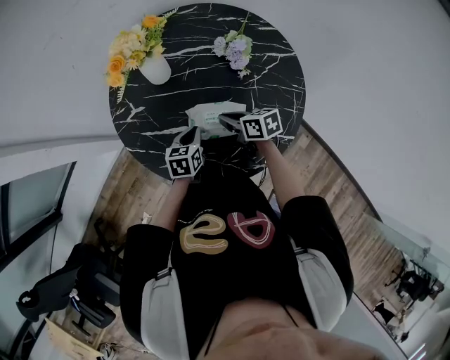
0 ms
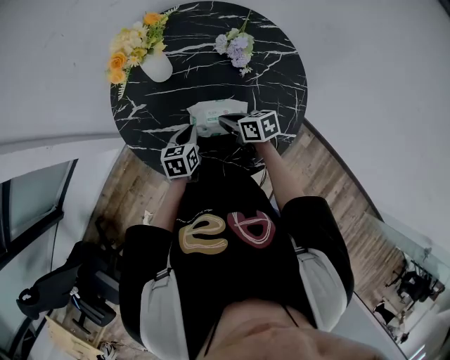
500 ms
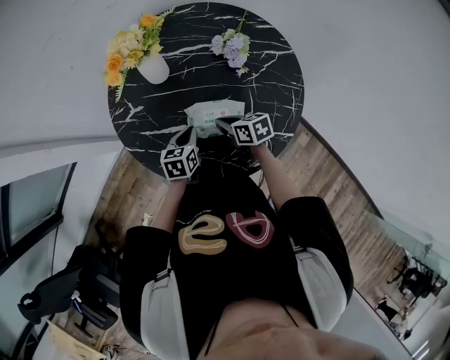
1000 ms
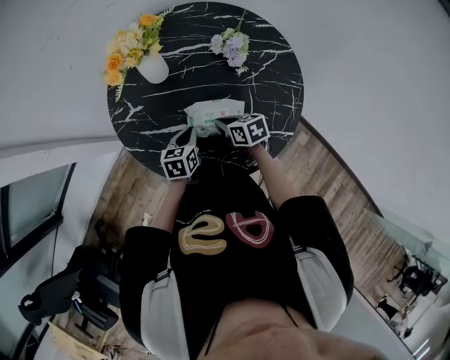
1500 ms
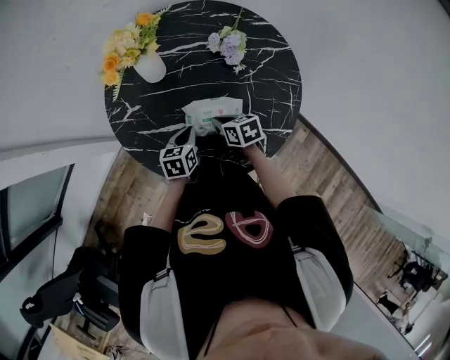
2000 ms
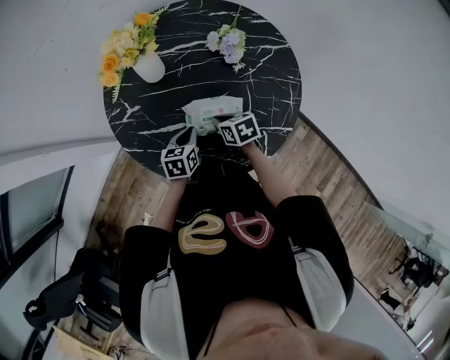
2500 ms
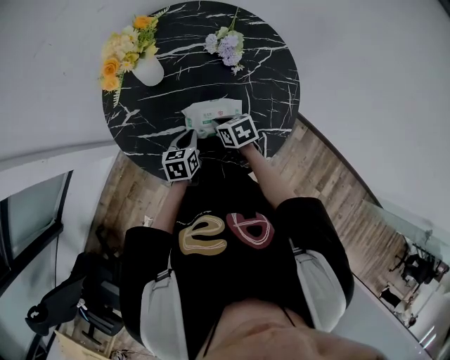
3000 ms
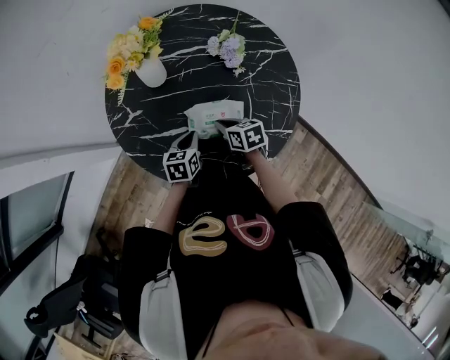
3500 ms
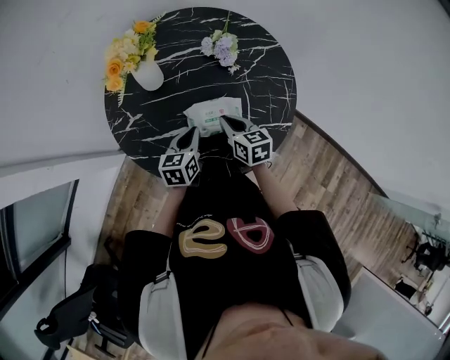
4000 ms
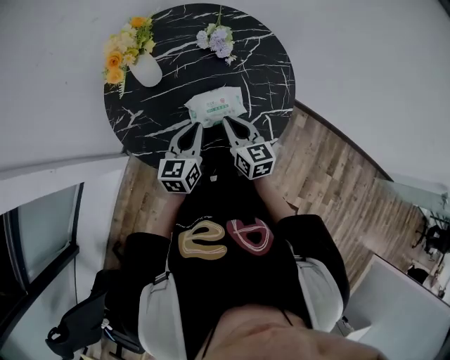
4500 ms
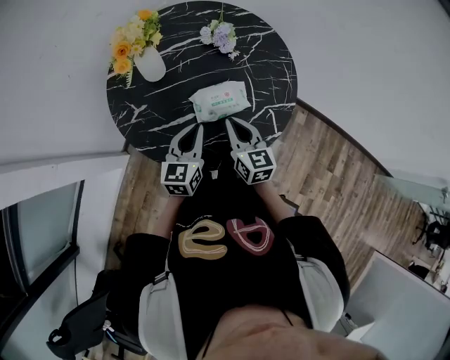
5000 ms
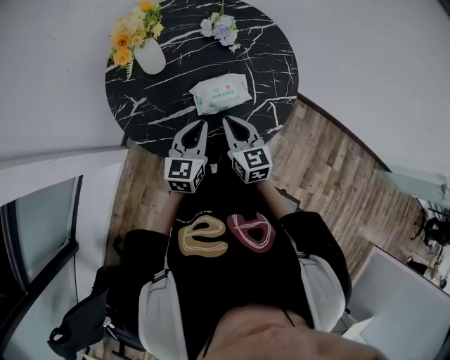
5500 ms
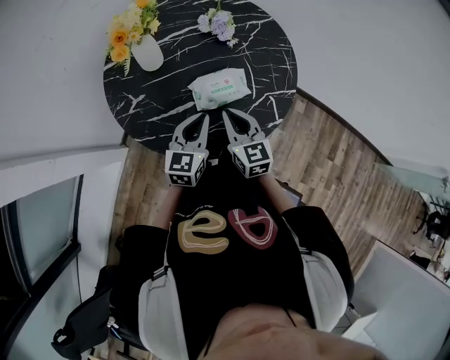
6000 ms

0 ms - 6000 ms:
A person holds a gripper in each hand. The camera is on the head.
0 ms - 2000 ms: The grippers move only a little.
2000 ms - 4000 ms: Both grippers travel together upward, approximately 5 cm. The right gripper changes its angle by about 20 degrees.
4000 ms - 6000 ms: The right gripper moves backward, approximately 10 cm, and rotates approximately 20 degrees. The left gripper goes some 10 cm backward and upward, and changes its angle by approximately 20 degrees.

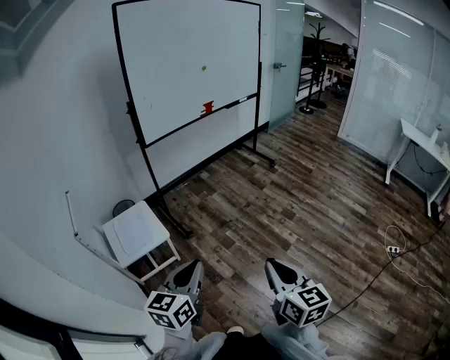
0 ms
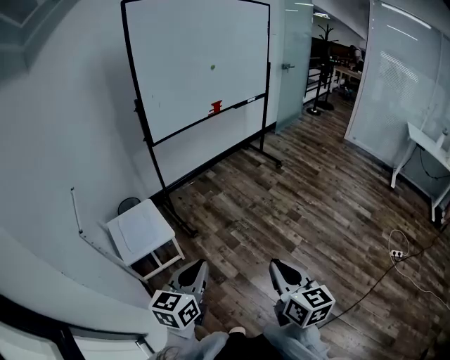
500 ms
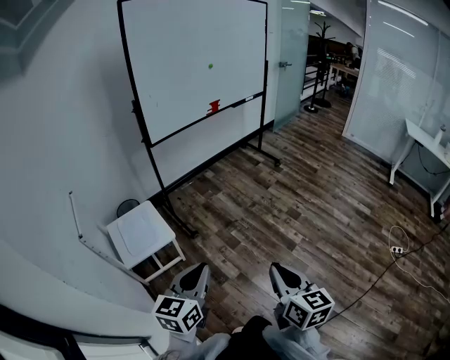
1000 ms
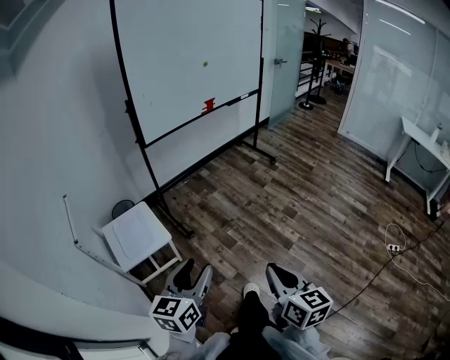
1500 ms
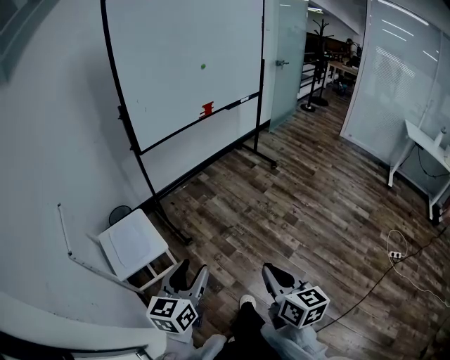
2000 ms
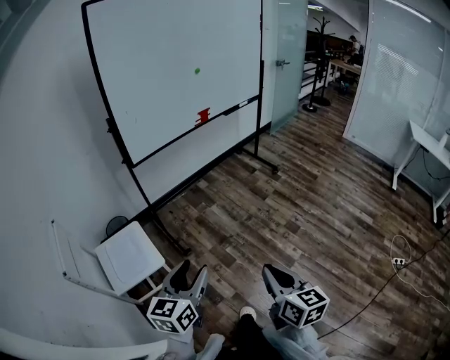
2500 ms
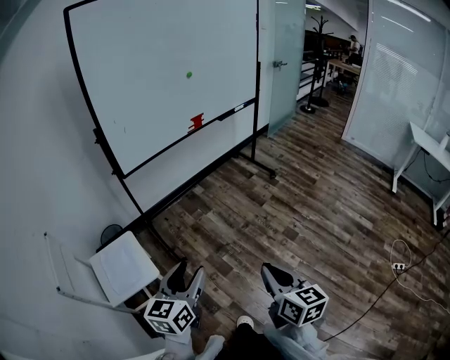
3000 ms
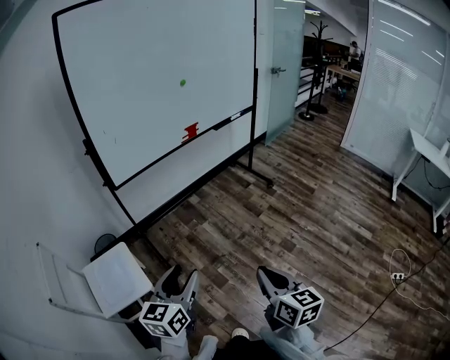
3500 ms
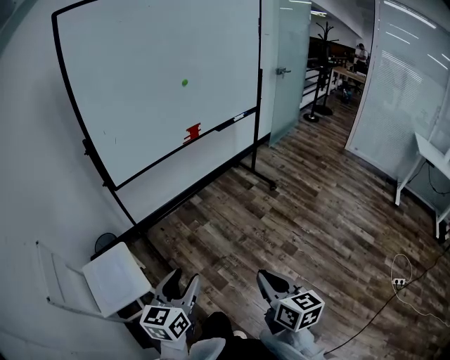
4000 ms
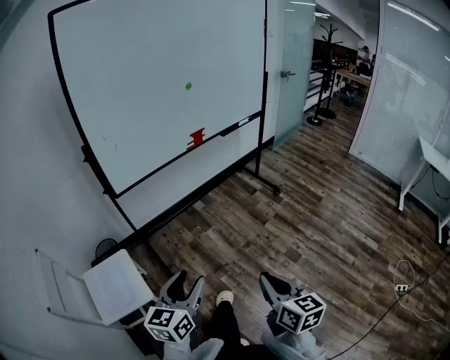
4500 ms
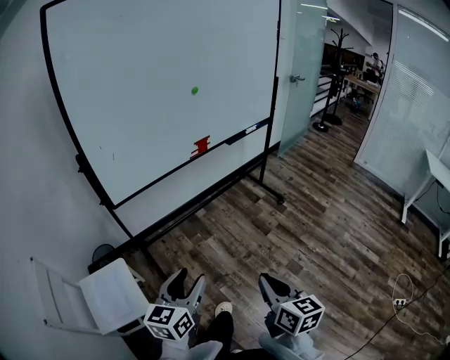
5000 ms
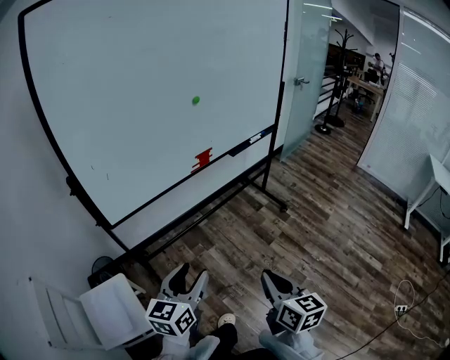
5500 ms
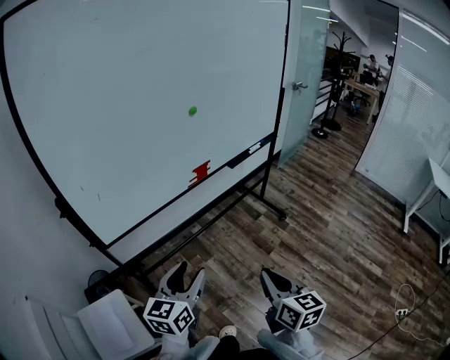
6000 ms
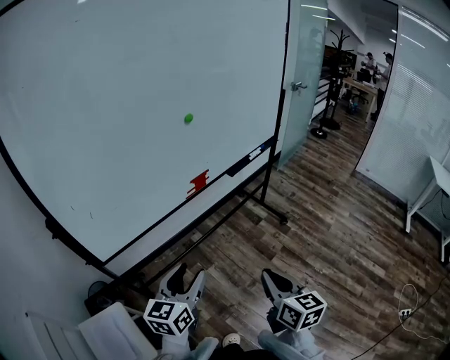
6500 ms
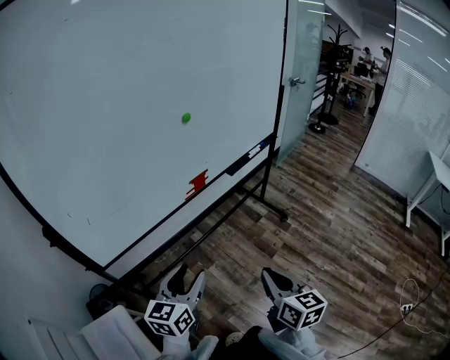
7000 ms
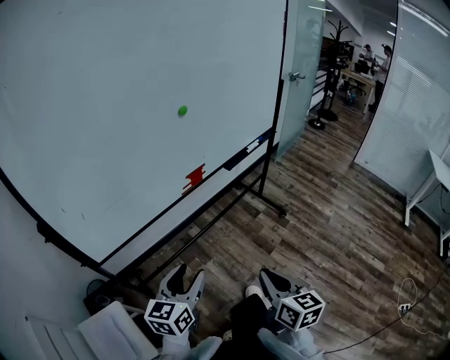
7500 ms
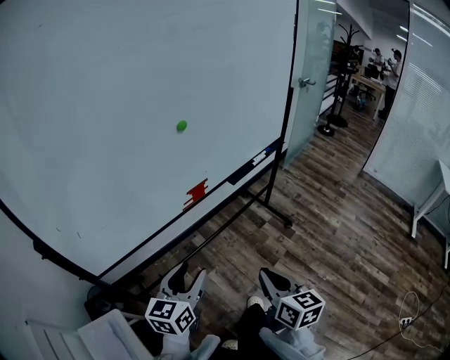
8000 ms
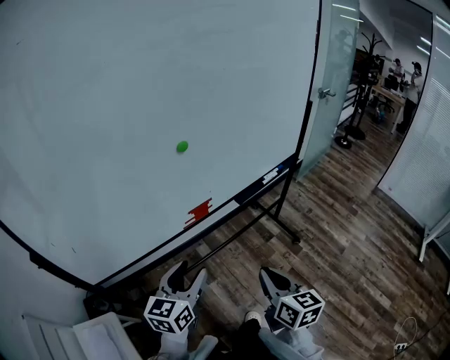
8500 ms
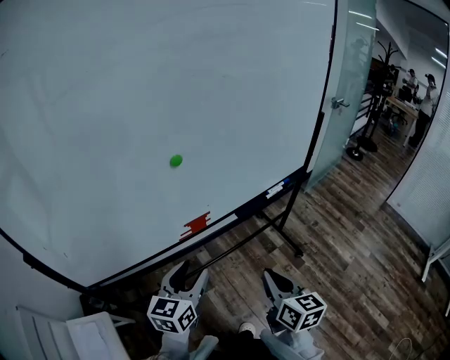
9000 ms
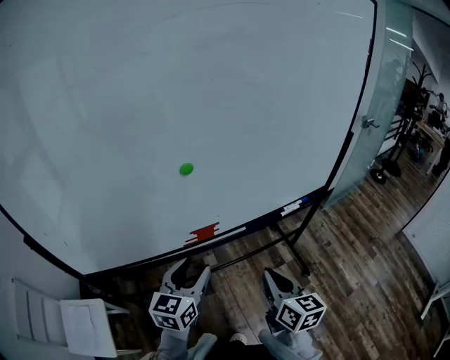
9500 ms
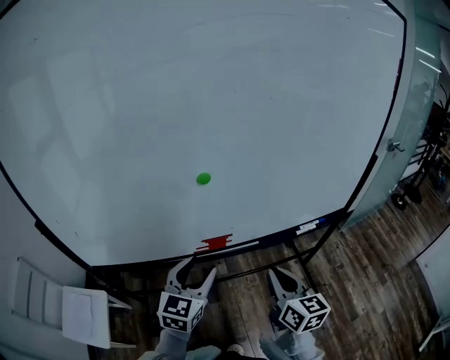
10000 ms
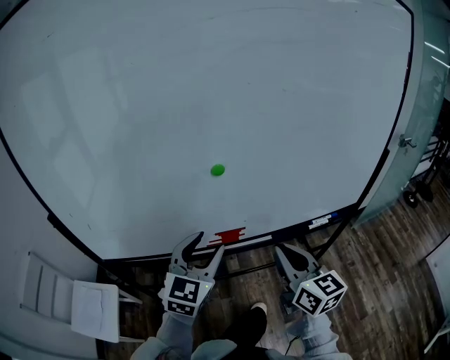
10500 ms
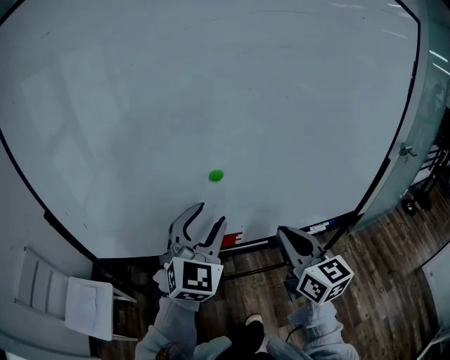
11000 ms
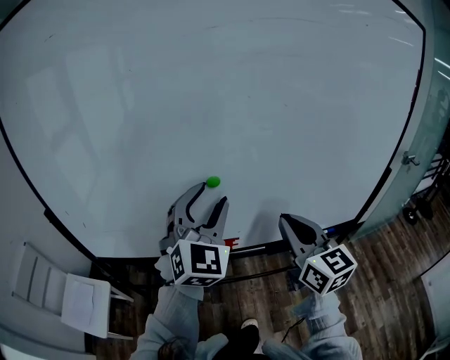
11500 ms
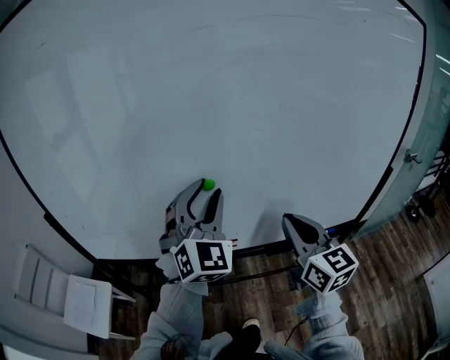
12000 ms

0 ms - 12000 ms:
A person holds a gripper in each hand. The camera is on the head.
0 ms - 2000 ms: Both grippers travel together forward, some 10 cm. The left gripper opens.
2000 ms - 4000 ms: The grippers both shift forward by about 25 cm.
4000 ms - 6000 ms: The grippers both shift forward by roughly 35 cm.
6000 ms - 8000 ms: Both grippers move forward, some 15 cm.
8000 ms - 10000 ms: The left gripper changes place by approximately 20 cm, and rotates roughly 30 degrees; the right gripper changes place by approximately 30 cm, and rotates some 30 degrees.
10000 ms - 12000 ms: Both grippers move upward and forward, about 20 cm. The left gripper swivels some 50 degrees. Meanwhile the right gripper changes its angle by roughly 20 degrees.

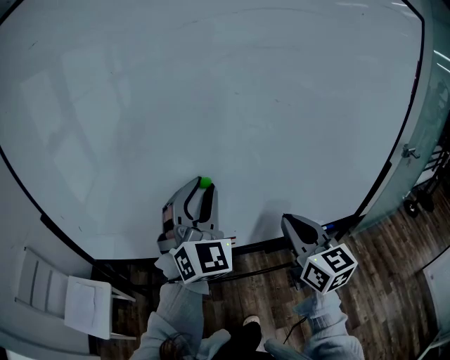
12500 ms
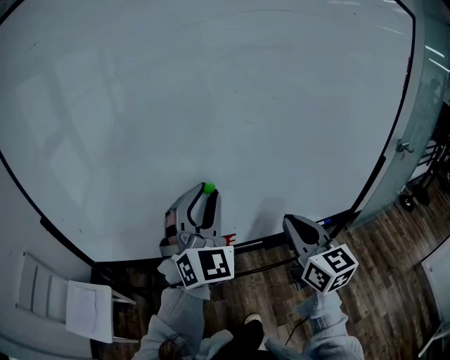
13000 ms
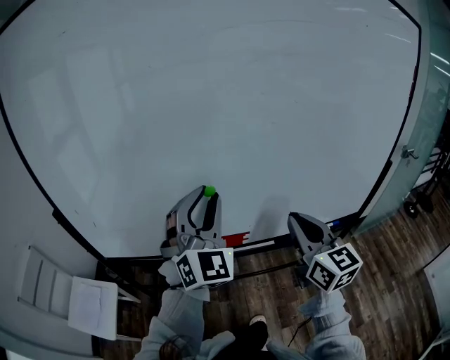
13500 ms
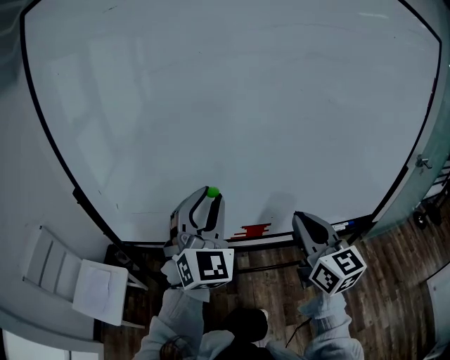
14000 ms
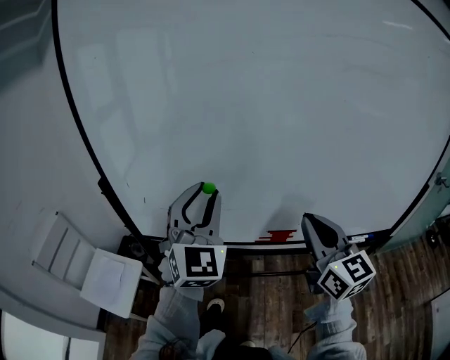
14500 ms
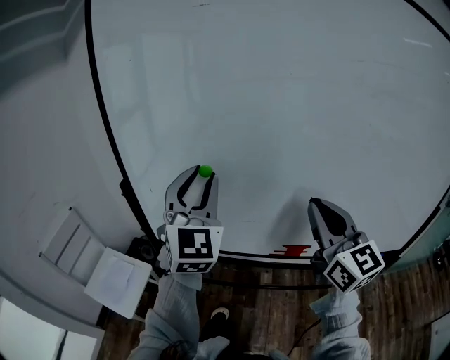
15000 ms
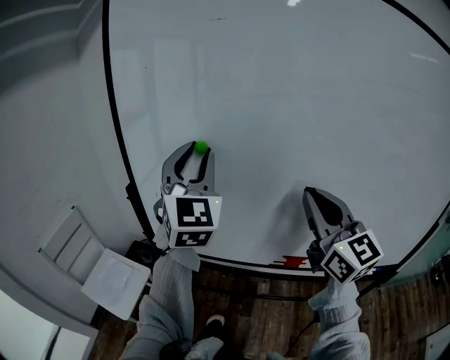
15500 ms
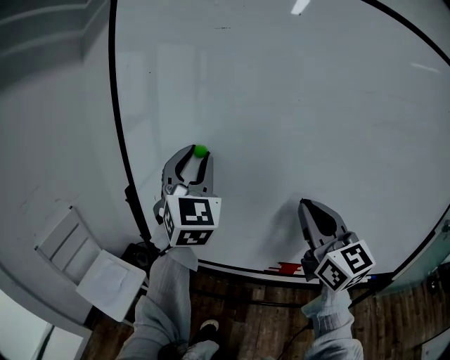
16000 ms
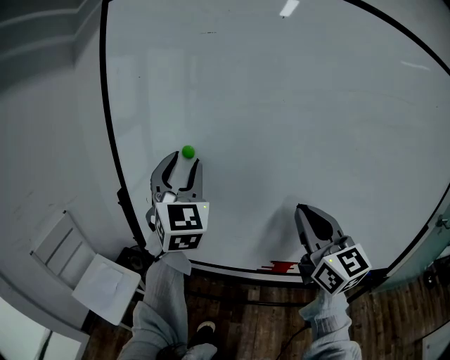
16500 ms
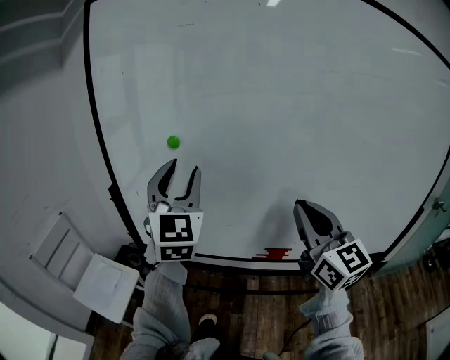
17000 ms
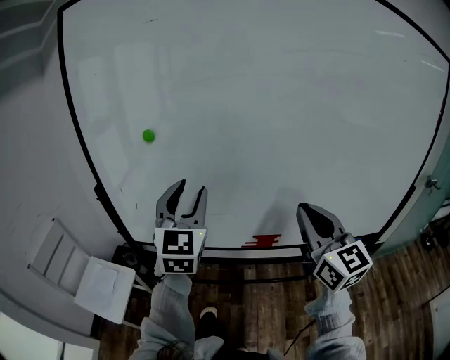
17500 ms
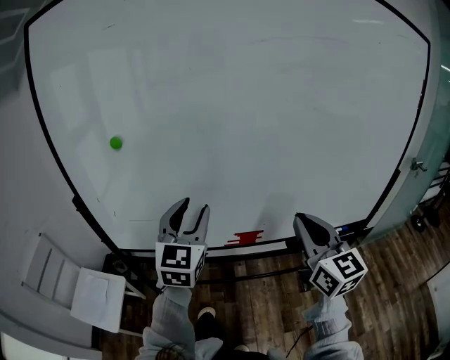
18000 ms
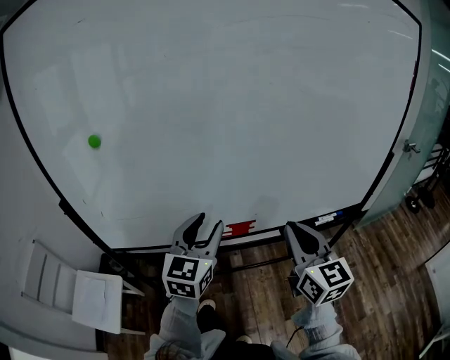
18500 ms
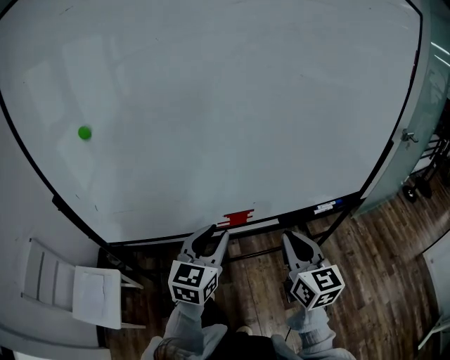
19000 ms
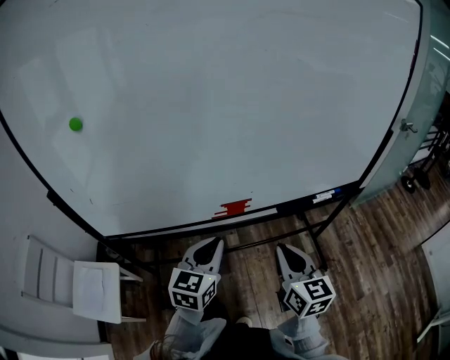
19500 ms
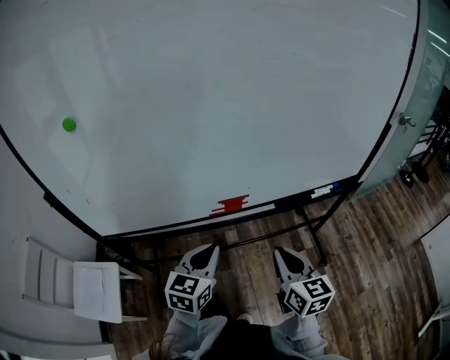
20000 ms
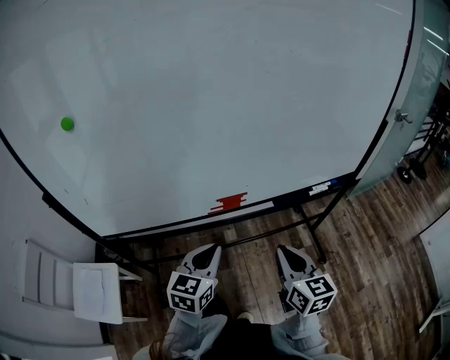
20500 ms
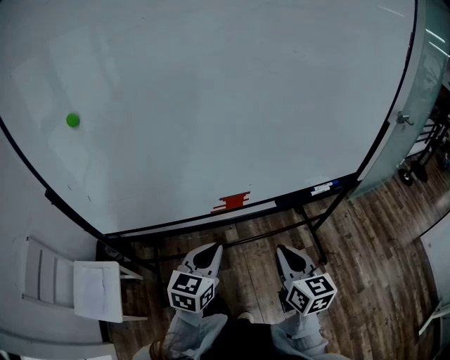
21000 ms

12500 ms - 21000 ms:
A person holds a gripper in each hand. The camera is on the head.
12500 ms - 14500 ms: Both grippers travel together to the left, about 20 cm.
14500 ms - 16500 ms: The left gripper goes about 15 cm upward, to the left and forward, while the right gripper is displaced upward by approximately 10 cm.
16500 ms - 19000 ms: The grippers both shift downward by roughly 25 cm. The right gripper swivels some 30 degrees, while the left gripper turns by some 60 degrees.
19000 ms - 21000 ms: The two grippers go about 10 cm downward and backward. The left gripper closes up.
